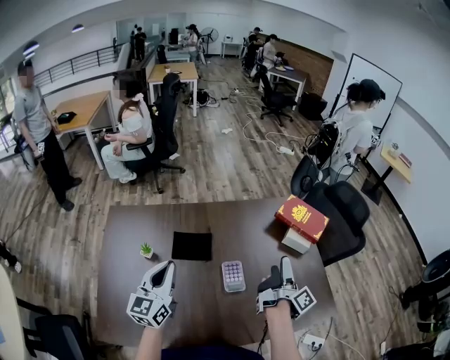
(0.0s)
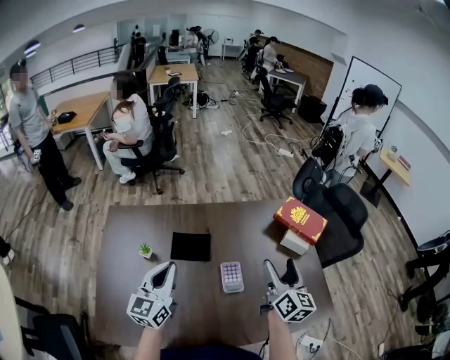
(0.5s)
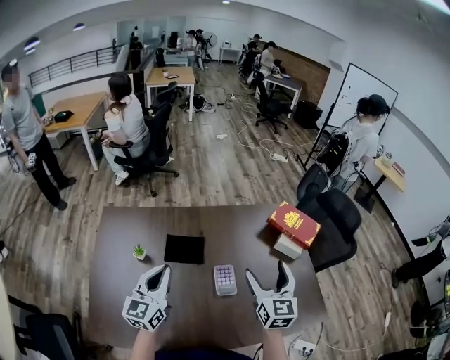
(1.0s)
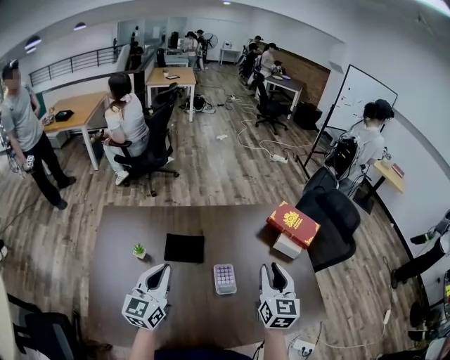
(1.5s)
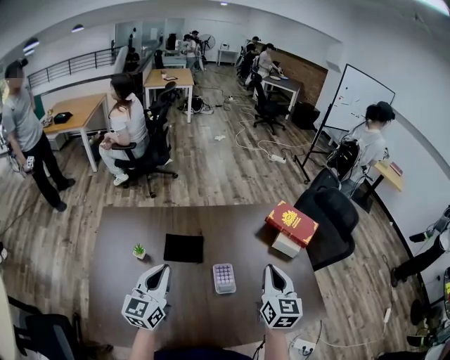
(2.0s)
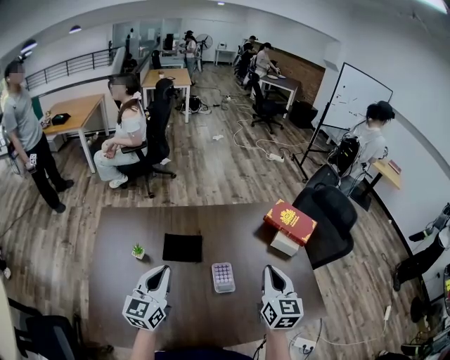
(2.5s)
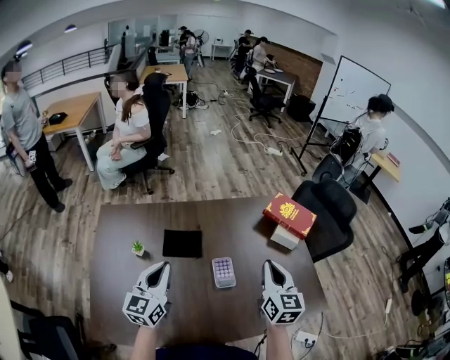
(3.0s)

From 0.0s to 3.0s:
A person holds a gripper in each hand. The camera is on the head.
From 0.0s to 1.5s: The right gripper travels upward by roughly 5 cm, rolls counterclockwise, seen from behind, by roughly 80 degrees, and closes.
From 1.5s to 3.0s: The grippers stay close to where they were, moving slightly.

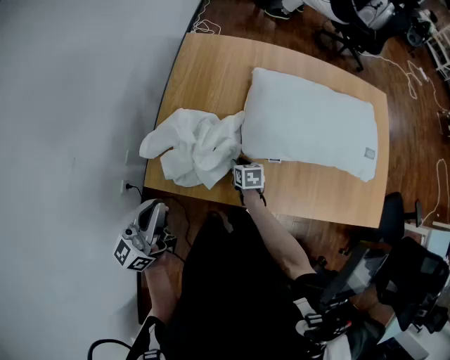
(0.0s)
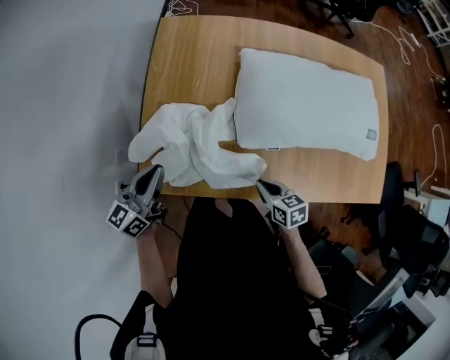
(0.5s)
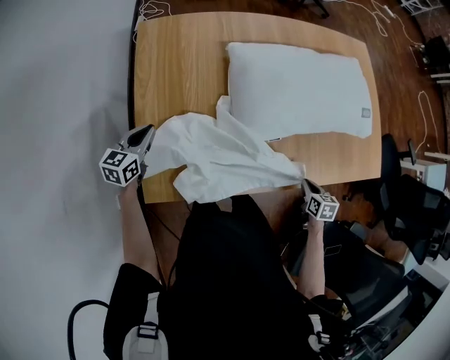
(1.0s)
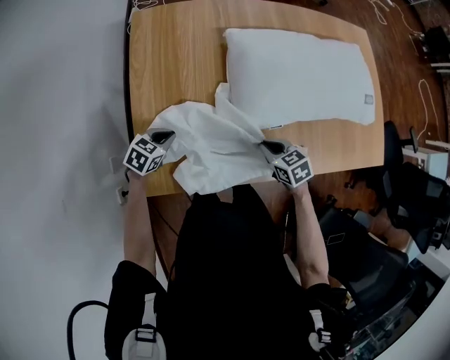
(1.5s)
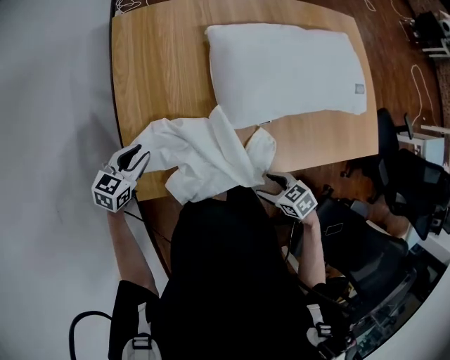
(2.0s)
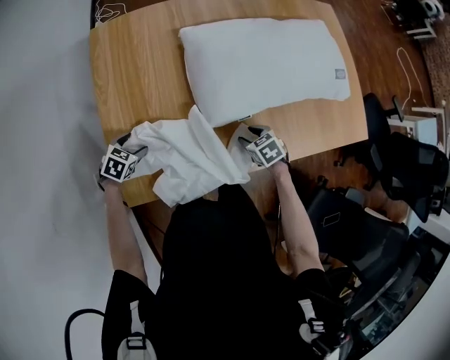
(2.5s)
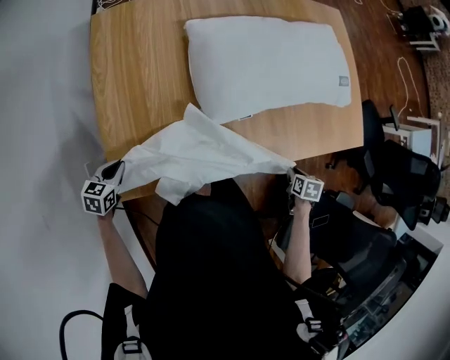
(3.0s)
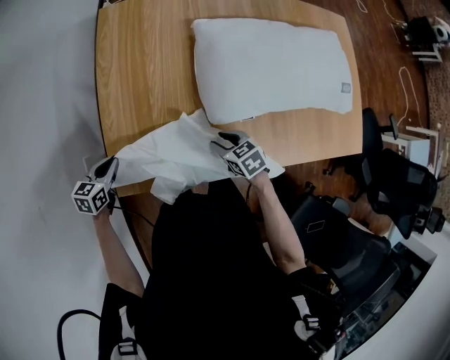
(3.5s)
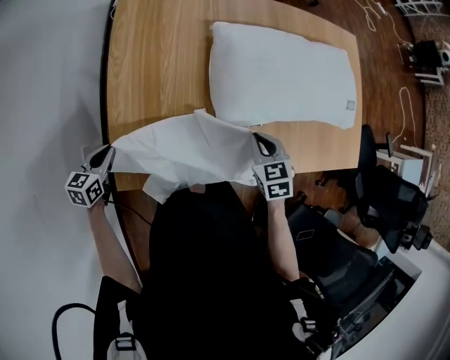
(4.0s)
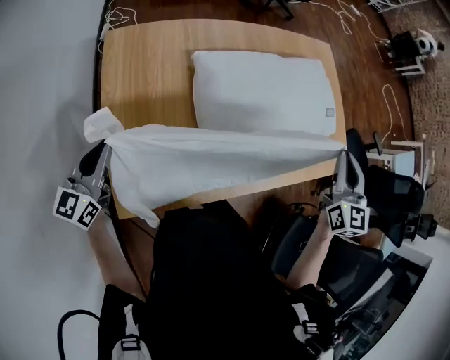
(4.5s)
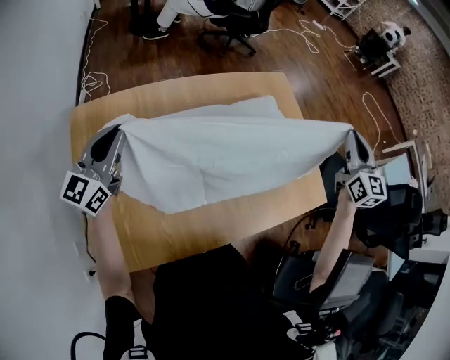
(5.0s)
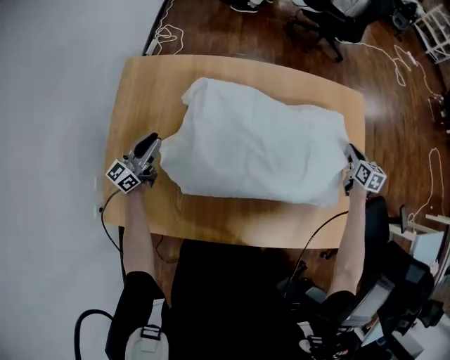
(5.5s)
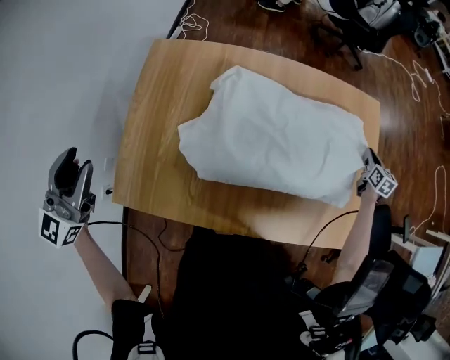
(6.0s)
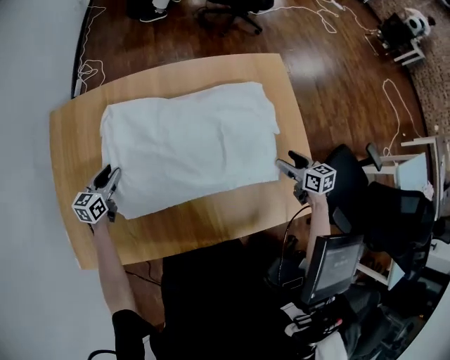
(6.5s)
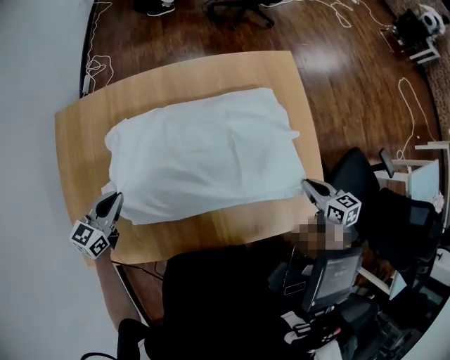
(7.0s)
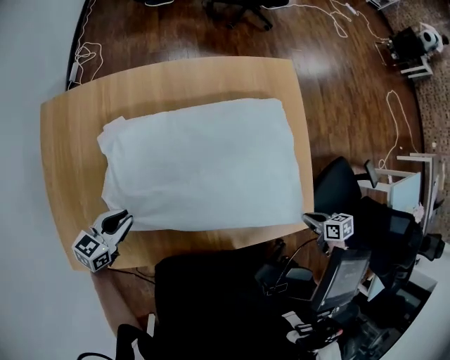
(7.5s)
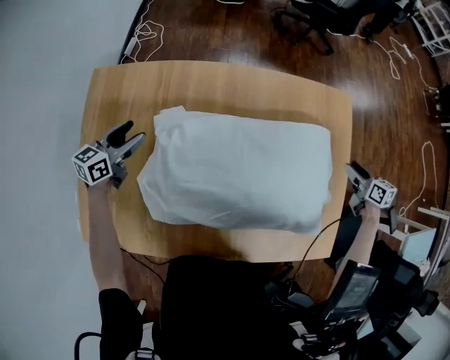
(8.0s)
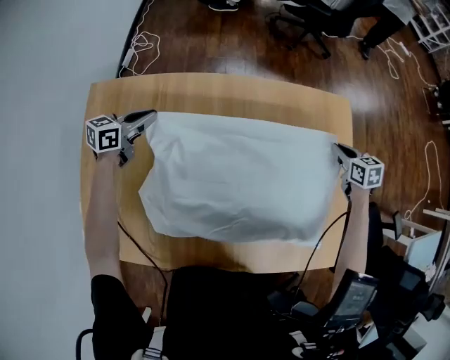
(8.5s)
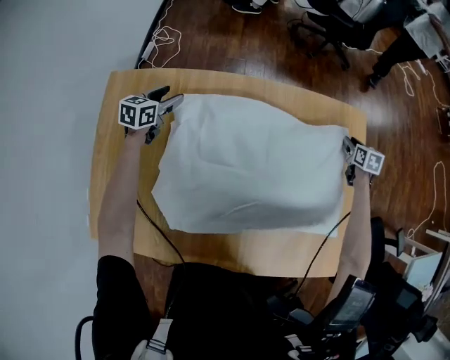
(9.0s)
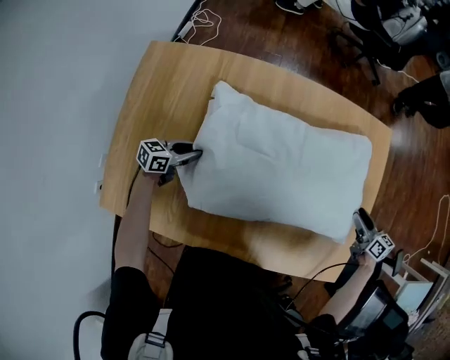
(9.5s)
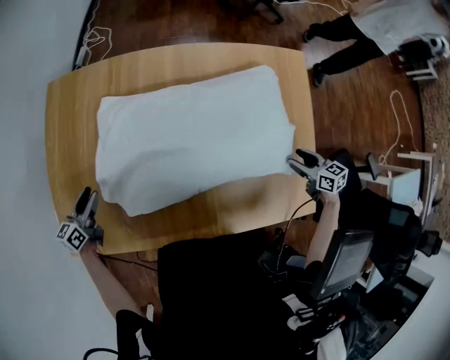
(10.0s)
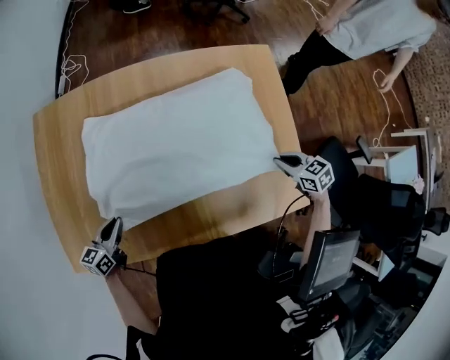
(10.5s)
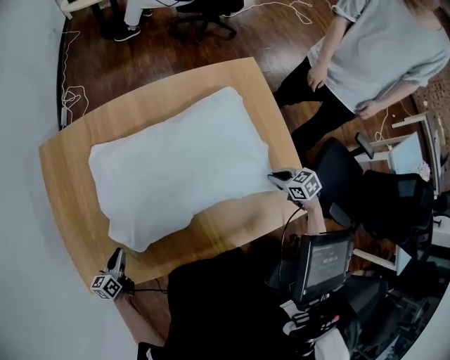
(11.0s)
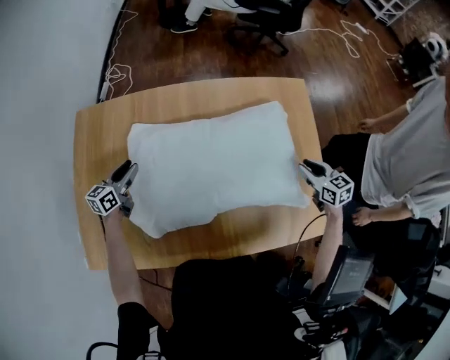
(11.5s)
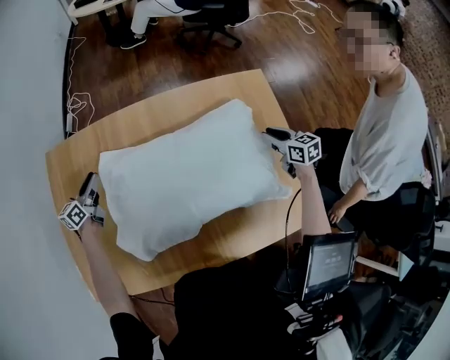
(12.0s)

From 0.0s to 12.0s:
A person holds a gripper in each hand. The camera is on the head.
From 0.0s to 2.0s: The left gripper moves downward, roughly 25 cm, and points its fingers some 50 degrees further downward, while the right gripper swings up and down, roughly 10 cm each way, with 2 reversals, and opens up.
From 2.0s to 4.0s: The right gripper shifts by roughly 20 cm, turns by some 30 degrees, and closes. Meanwhile the left gripper moves roughly 10 cm, swivels roughly 20 degrees, and opens, then closes again.
From 4.0s to 6.0s: The left gripper goes up and down, about 35 cm each way, reversing 2 times, tilts its fingers roughly 40 degrees upward, and opens. The right gripper travels to the right and forward by about 60 cm, and changes its angle by about 30 degrees.
From 6.0s to 8.0s: The left gripper moves up and down over about 35 cm, changing direction 2 times, turns by about 40 degrees, and opens. The right gripper goes some 10 cm downward and to the right, goes backward and returns, approximately 30 cm each way, swivels approximately 30 degrees, and opens.
From 8.0s to 10.0s: The left gripper moves backward, some 25 cm, and closes and opens again; the right gripper is displaced backward and to the left by some 15 cm, rotates some 20 degrees, and closes, then reopens.
From 10.0s to 12.0s: The left gripper is displaced forward and to the right by roughly 25 cm. Meanwhile the right gripper shifts roughly 10 cm forward, and closes up.

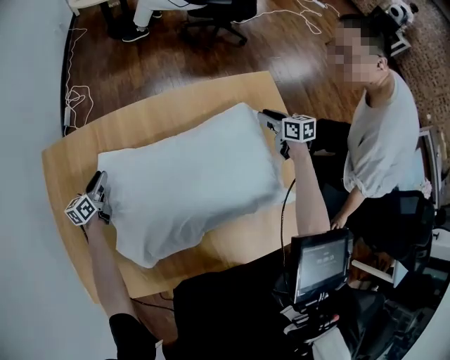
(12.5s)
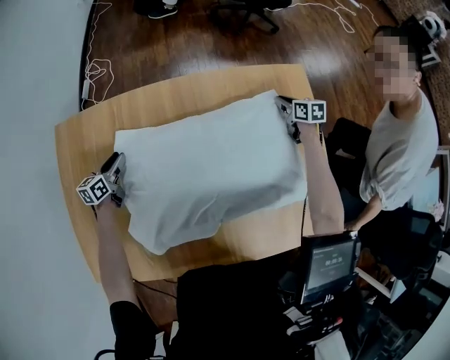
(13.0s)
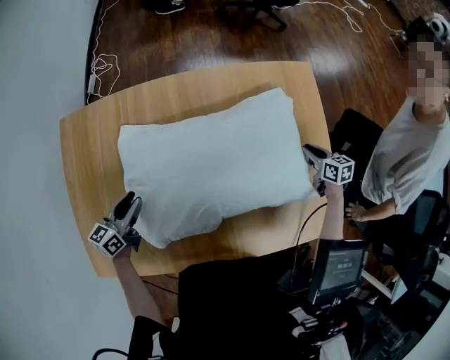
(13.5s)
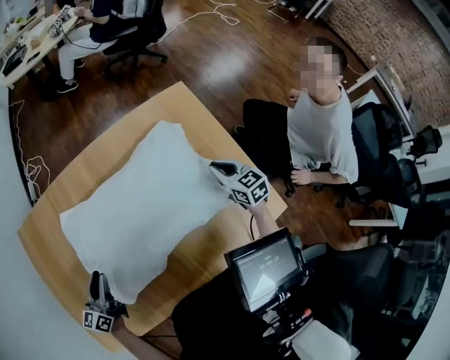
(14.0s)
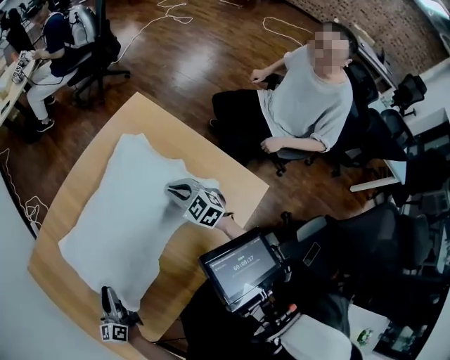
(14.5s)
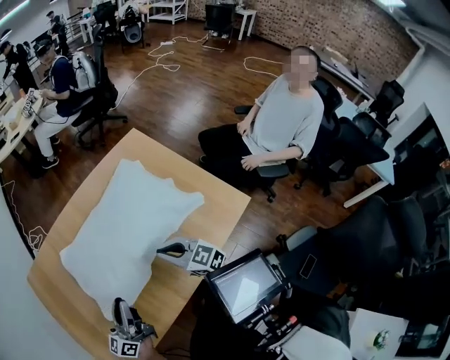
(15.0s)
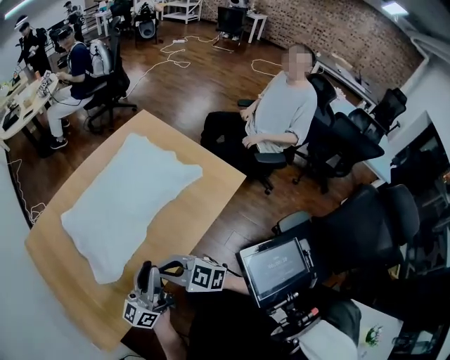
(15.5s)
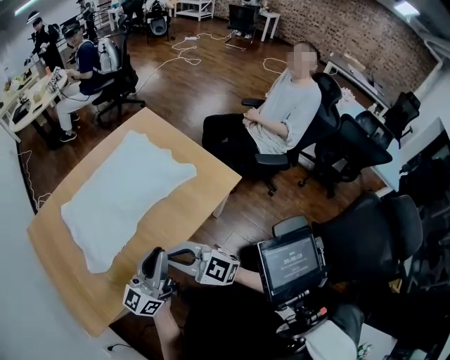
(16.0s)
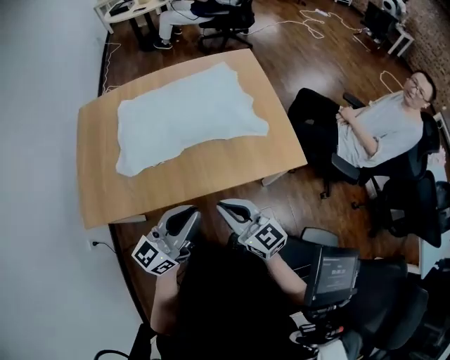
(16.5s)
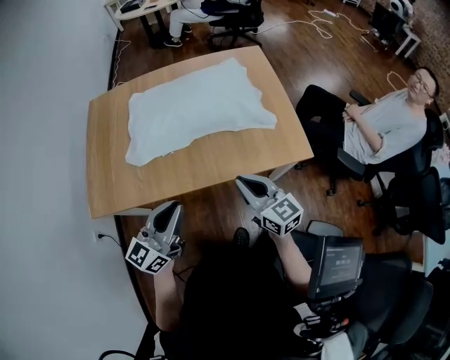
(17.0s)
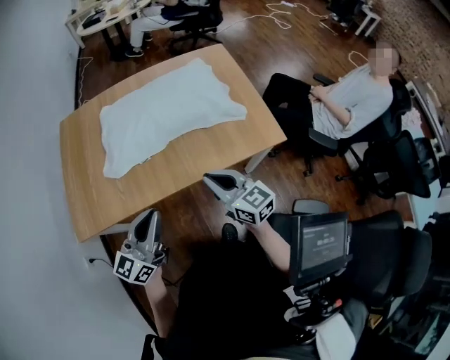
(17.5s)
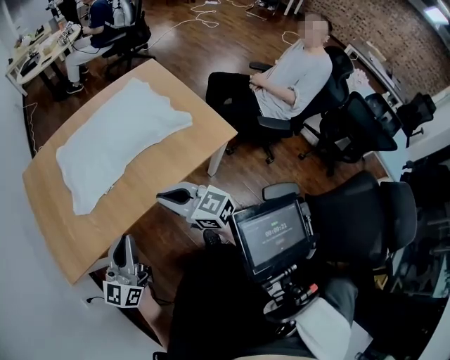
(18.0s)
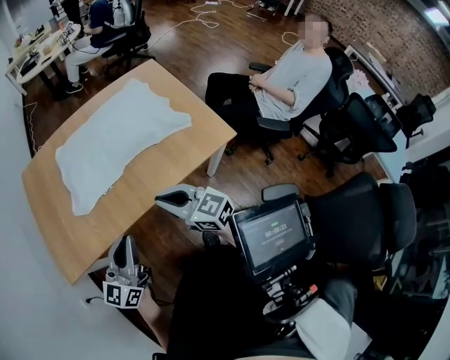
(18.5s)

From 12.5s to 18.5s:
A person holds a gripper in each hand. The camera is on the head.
From 12.5s to 14.5s: The left gripper heads backward and to the right, covering about 30 cm; the right gripper is displaced backward by approximately 25 cm, rotates approximately 30 degrees, and closes its fingers.
From 14.5s to 16.5s: The left gripper is displaced backward, to the right and upward by approximately 50 cm, and swivels roughly 30 degrees, while the right gripper is displaced backward by roughly 40 cm, and tilts its fingers some 30 degrees upward.
From 16.5s to 18.5s: The left gripper is displaced to the left by roughly 10 cm. Meanwhile the right gripper moves to the left, about 5 cm.

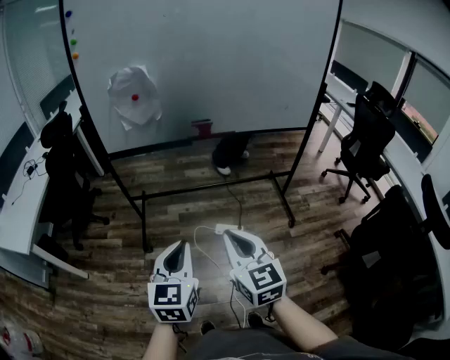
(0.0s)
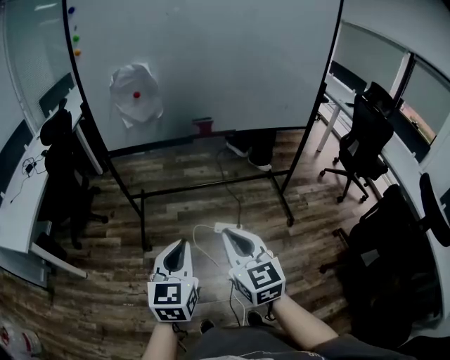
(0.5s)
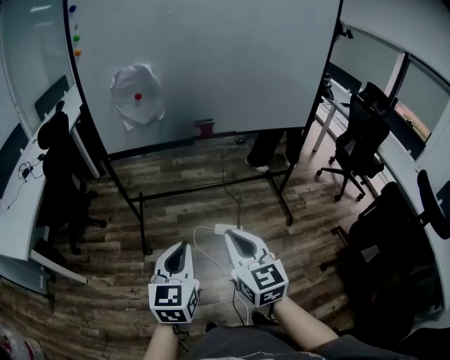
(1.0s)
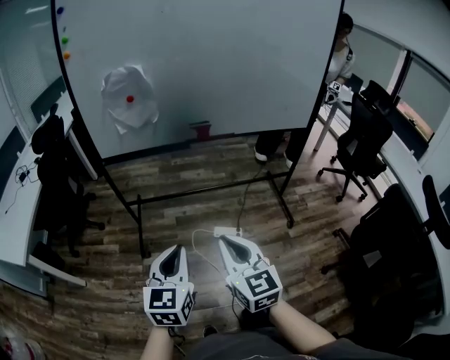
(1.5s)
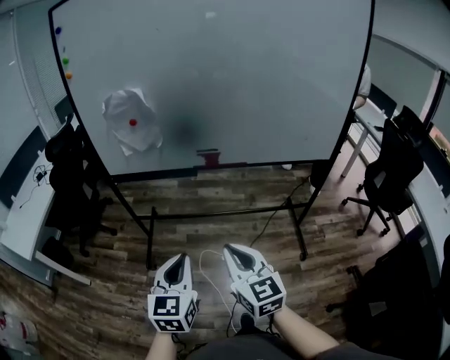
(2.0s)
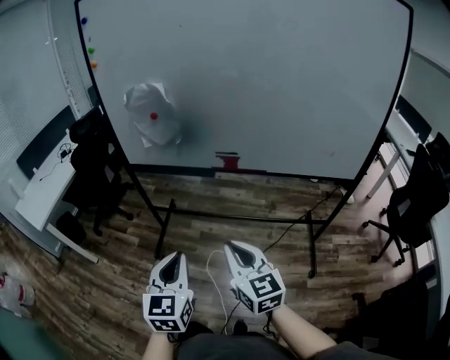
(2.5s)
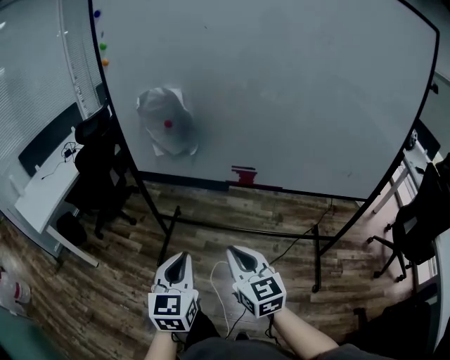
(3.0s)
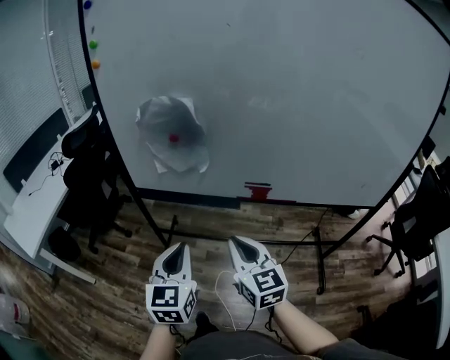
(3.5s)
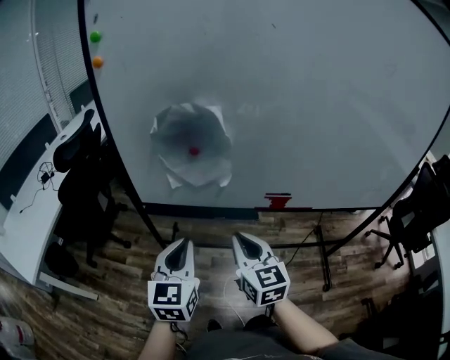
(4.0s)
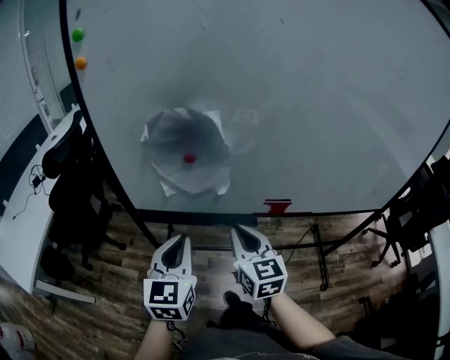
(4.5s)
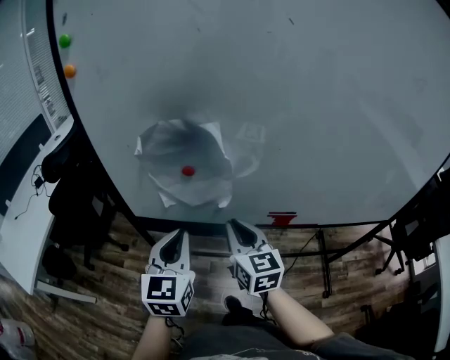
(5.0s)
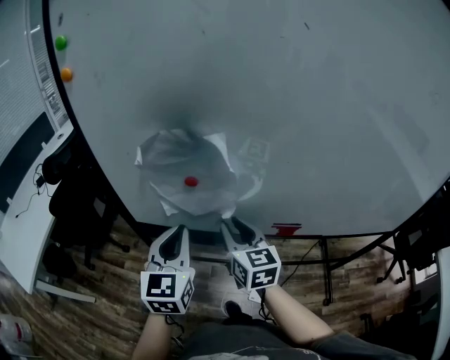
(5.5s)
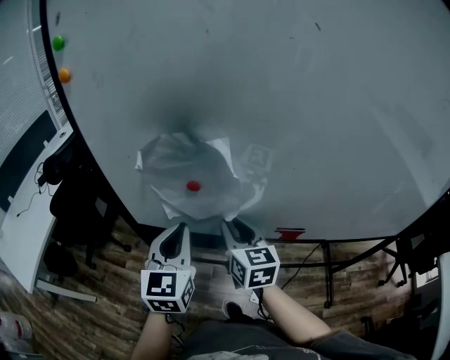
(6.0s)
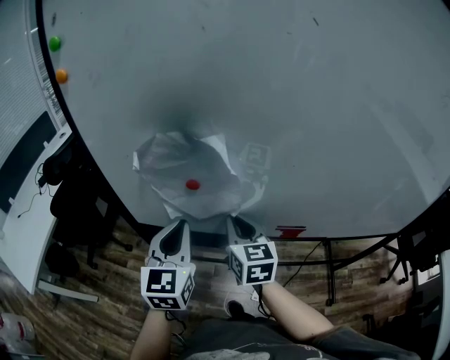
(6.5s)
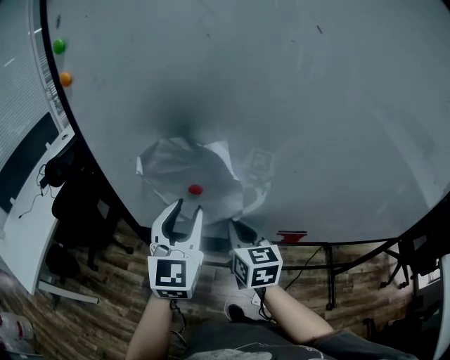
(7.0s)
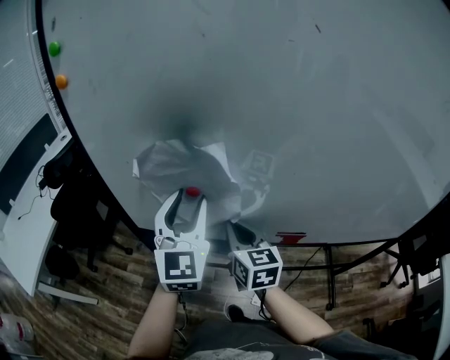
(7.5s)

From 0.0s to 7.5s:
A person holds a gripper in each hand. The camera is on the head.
From 0.0s to 2.0s: The grippers both shift forward and to the right by roughly 15 cm.
From 2.0s to 4.0s: The left gripper moves forward and to the left, approximately 35 cm; the right gripper travels forward by roughly 30 cm.
From 4.0s to 5.5s: Both grippers travel together forward, some 15 cm.
From 5.5s to 7.5s: The left gripper heads forward and upward, covering approximately 10 cm, and opens its fingers.
